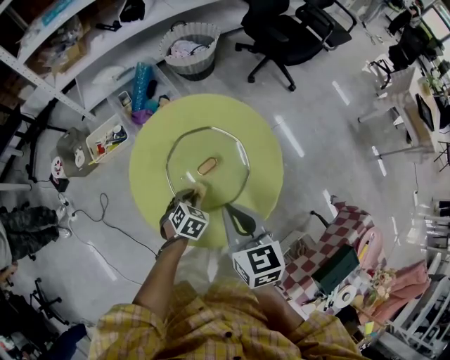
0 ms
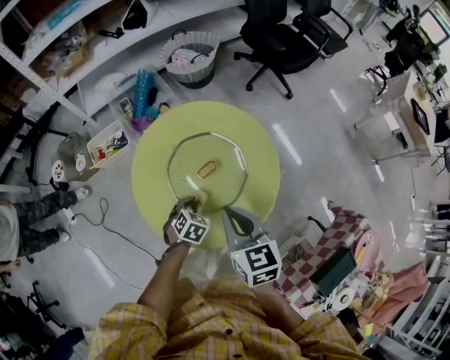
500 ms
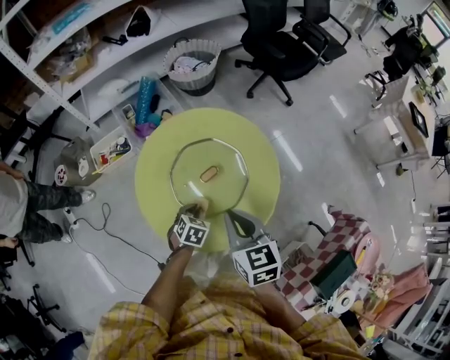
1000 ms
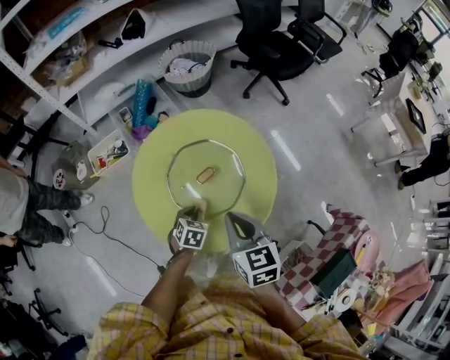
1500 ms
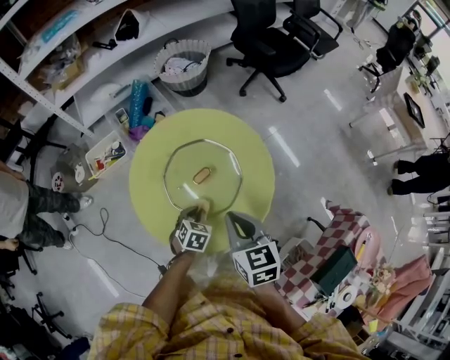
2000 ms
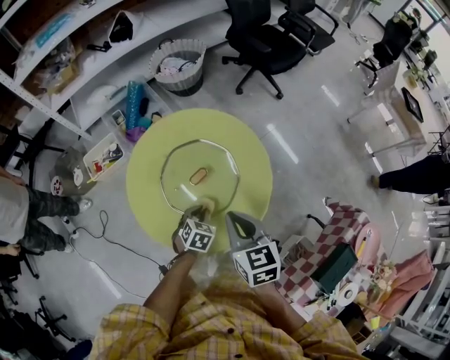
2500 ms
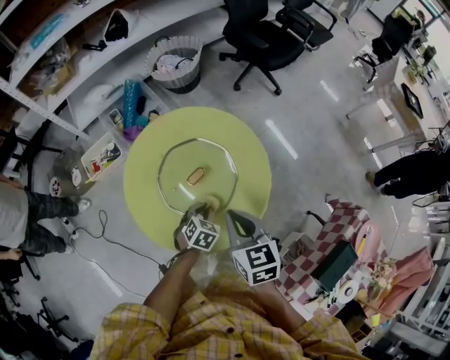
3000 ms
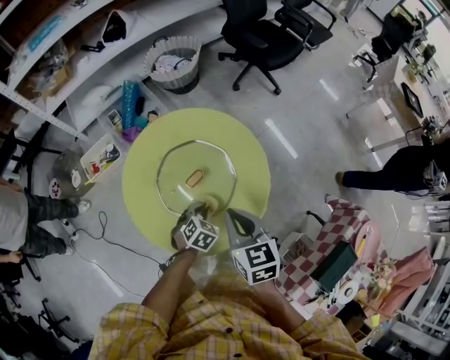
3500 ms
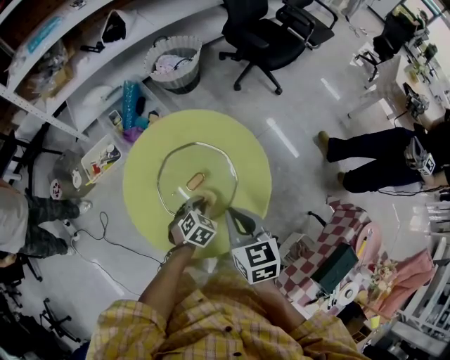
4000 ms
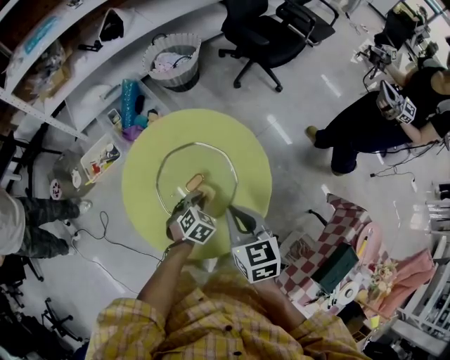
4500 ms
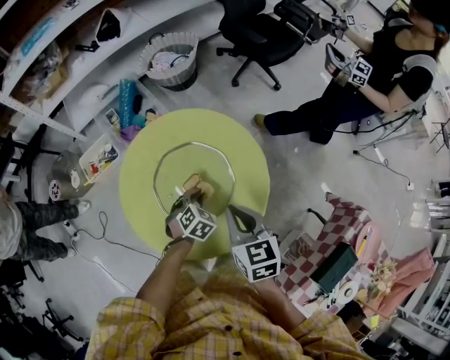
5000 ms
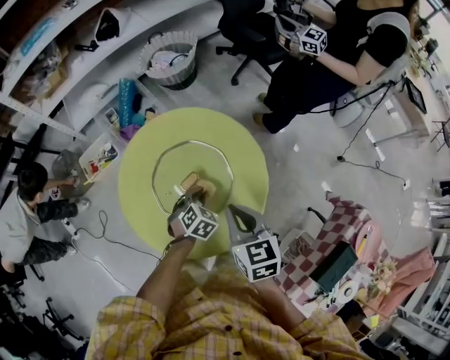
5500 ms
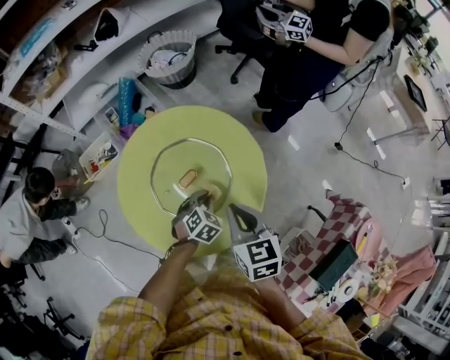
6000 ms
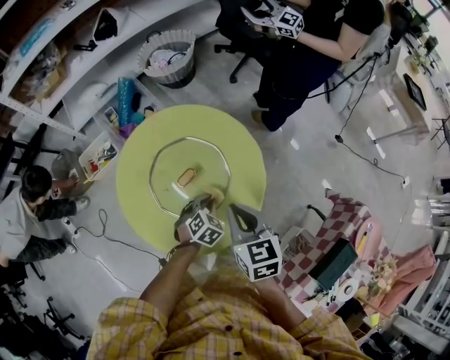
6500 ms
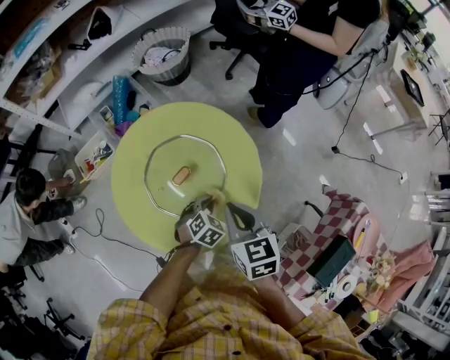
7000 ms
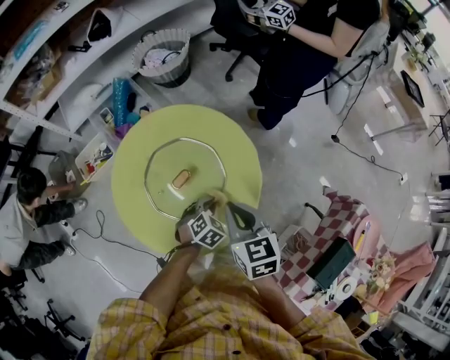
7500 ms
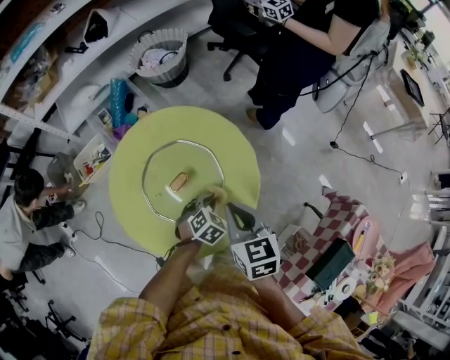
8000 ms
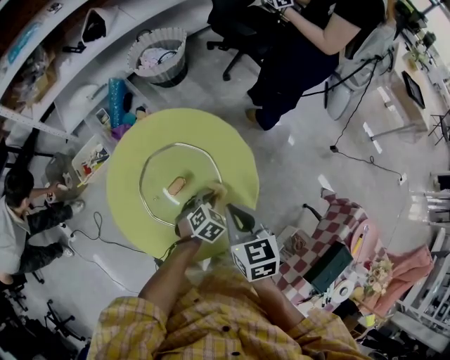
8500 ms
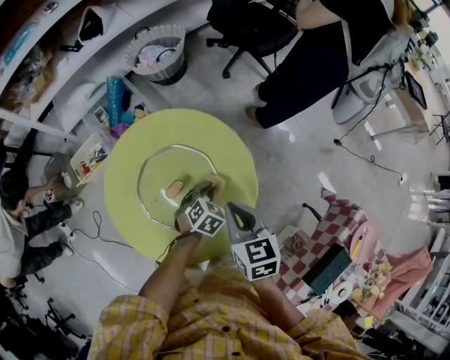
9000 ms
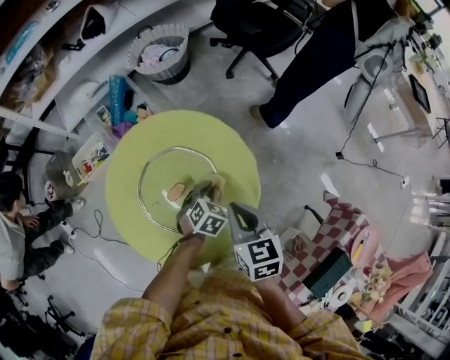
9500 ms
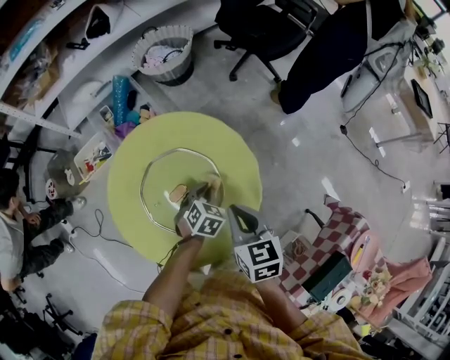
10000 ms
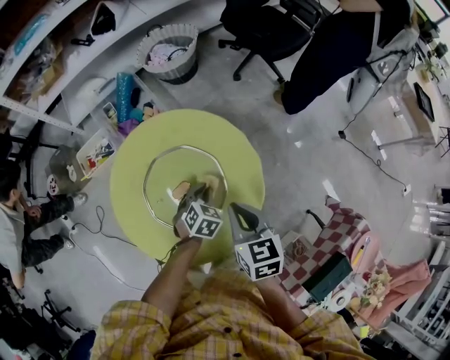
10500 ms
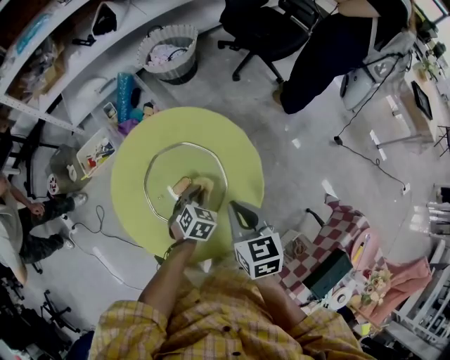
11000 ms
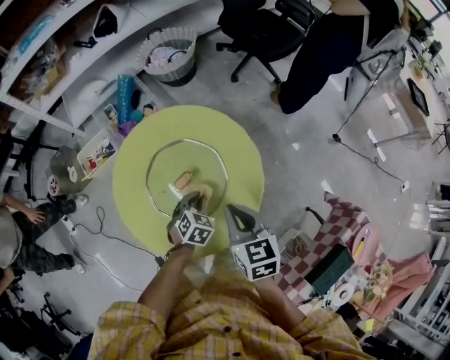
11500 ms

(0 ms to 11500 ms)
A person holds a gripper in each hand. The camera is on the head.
0 ms - 2000 ms: The grippers move only a little.
2000 ms - 4000 ms: The left gripper is displaced forward by about 5 cm.
4000 ms - 6000 ms: There are only small adjustments of the grippers.
6000 ms - 7500 ms: The left gripper ends up about 5 cm from where it was.
7500 ms - 9500 ms: The left gripper is displaced forward by roughly 10 cm; the right gripper shifts some 5 cm forward.
9500 ms - 11500 ms: The left gripper shifts some 10 cm to the left and backward. The right gripper moves roughly 5 cm.

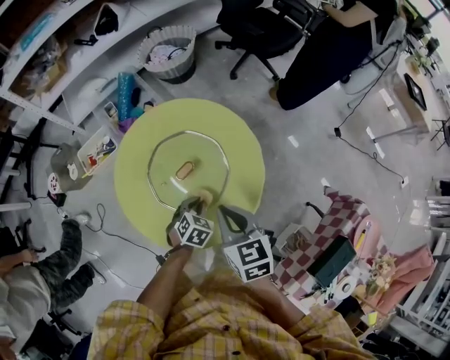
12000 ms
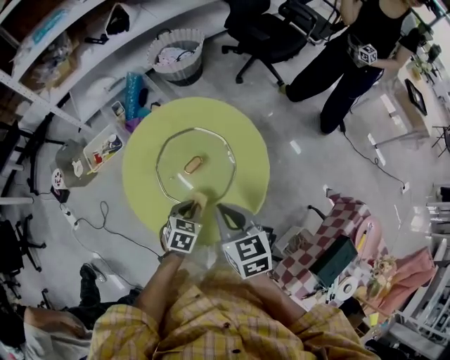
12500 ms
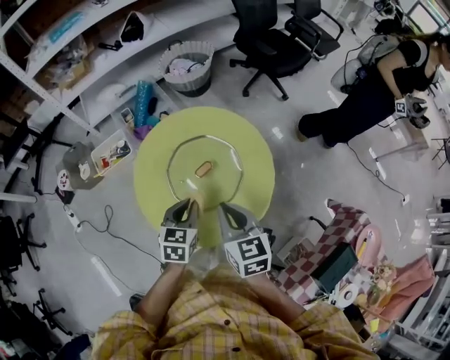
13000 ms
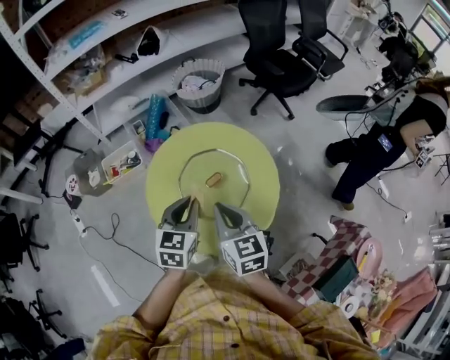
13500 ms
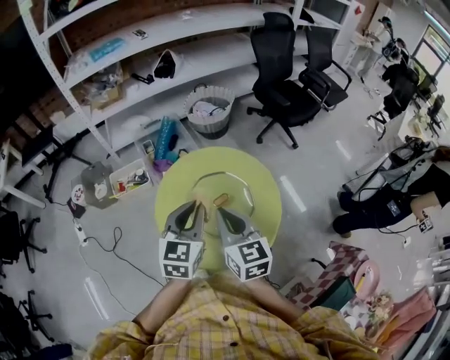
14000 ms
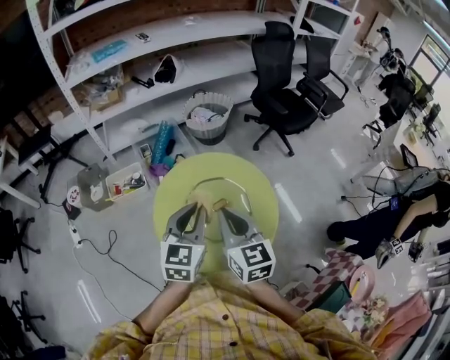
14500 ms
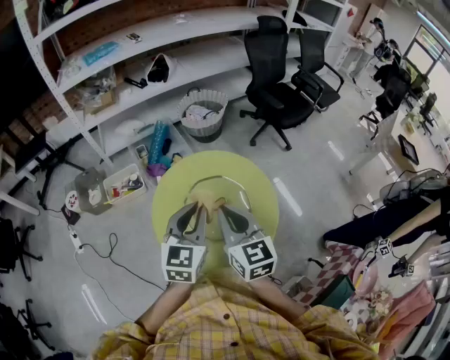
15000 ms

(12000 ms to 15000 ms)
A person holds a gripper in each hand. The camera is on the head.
12000 ms - 13500 ms: The left gripper travels upward and to the left by about 30 cm, and tilts its fingers some 30 degrees upward, while the right gripper shifts some 15 cm to the left and upward.
13500 ms - 15000 ms: The two grippers go roughly 10 cm upward.

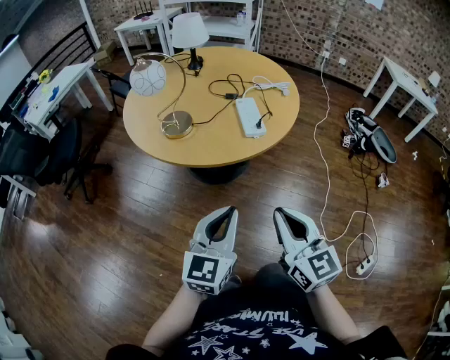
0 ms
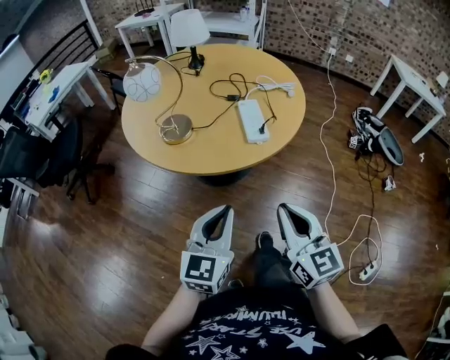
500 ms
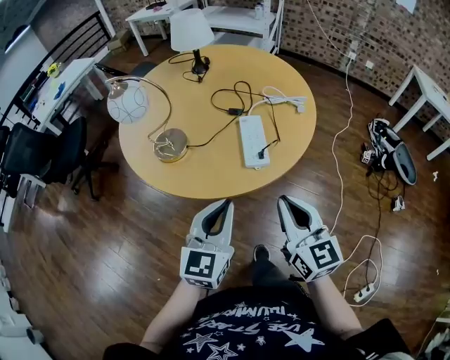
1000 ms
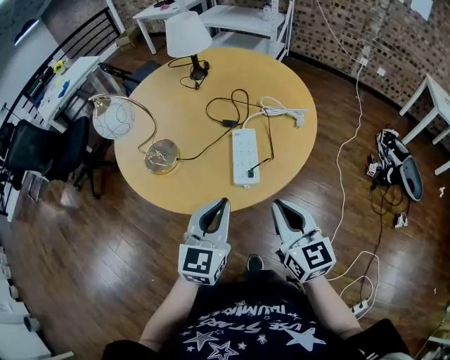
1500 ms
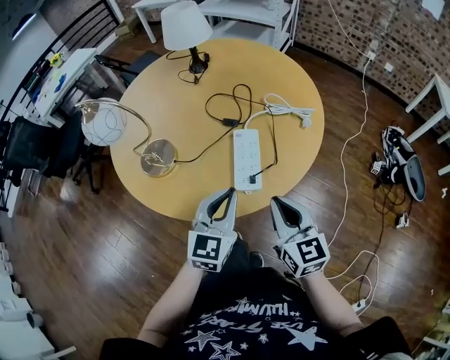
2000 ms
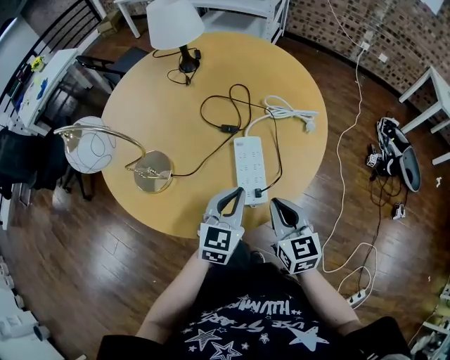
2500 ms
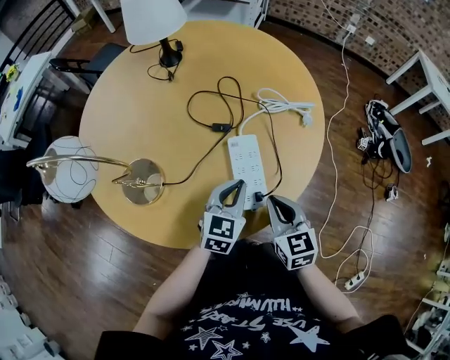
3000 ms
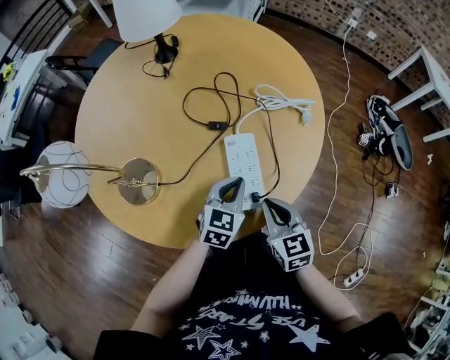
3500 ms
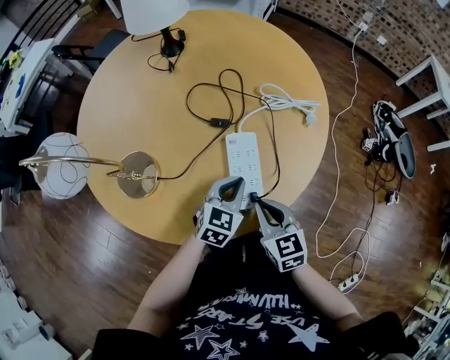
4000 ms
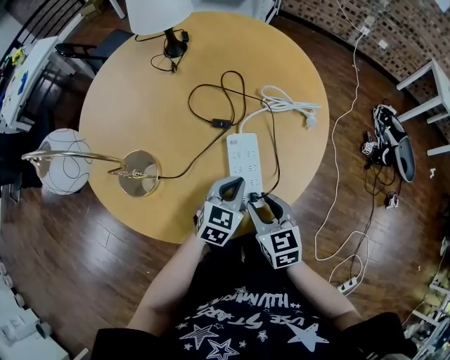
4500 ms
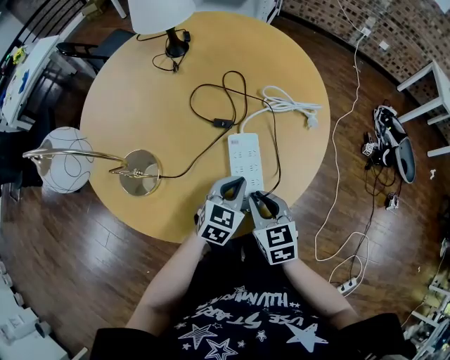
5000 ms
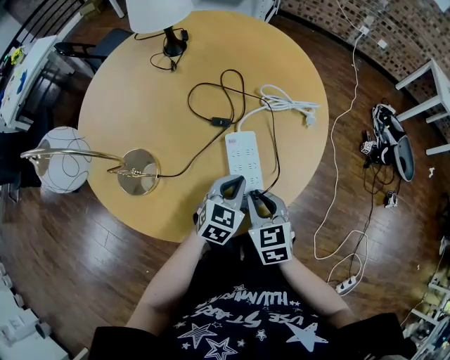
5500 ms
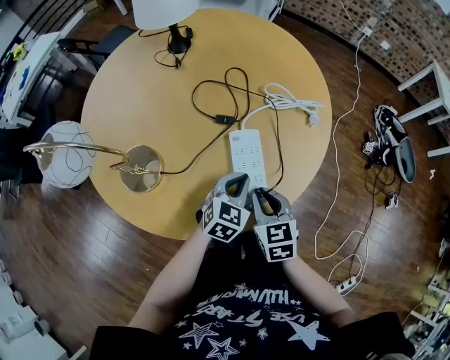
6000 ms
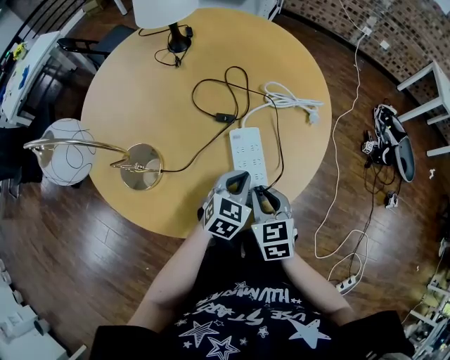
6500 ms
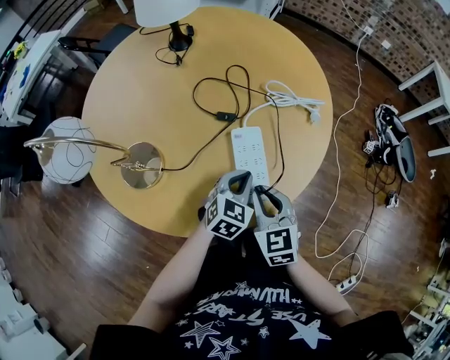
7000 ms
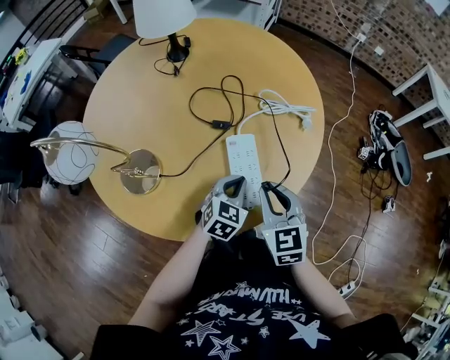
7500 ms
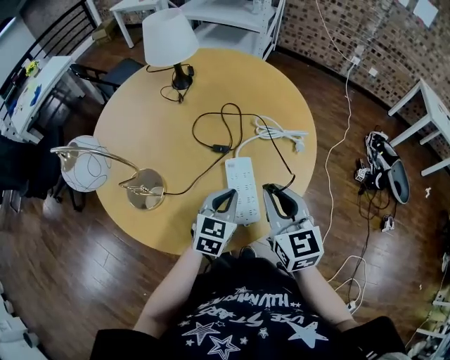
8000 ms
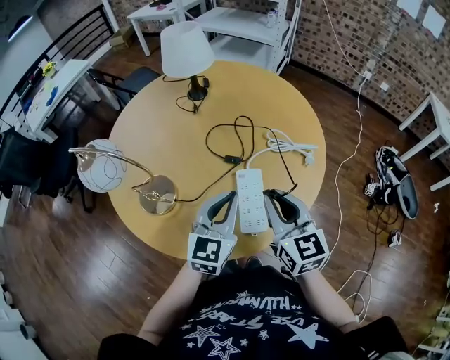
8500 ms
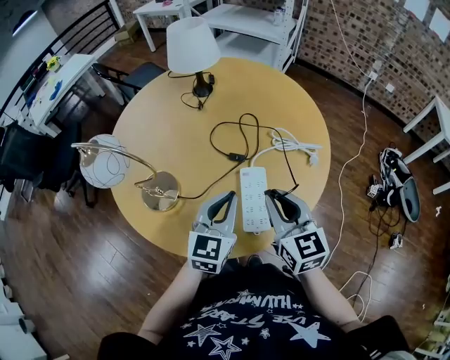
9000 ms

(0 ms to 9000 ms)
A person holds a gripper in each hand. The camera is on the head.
0 ms - 2000 ms: The grippers both shift forward by about 30 cm.
2000 ms - 4500 ms: Both grippers move downward and forward, some 15 cm. The right gripper swivels roughly 20 degrees, and opens its fingers. Meanwhile the left gripper swivels about 30 degrees.
4500 ms - 7000 ms: The right gripper closes its fingers.
7000 ms - 9000 ms: The left gripper moves upward and to the left, roughly 15 cm, and changes its angle by roughly 30 degrees, while the right gripper moves upward, roughly 15 cm, and swivels some 20 degrees.

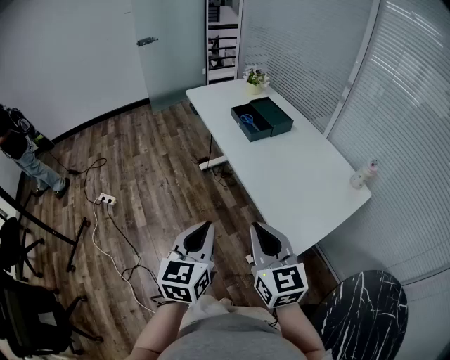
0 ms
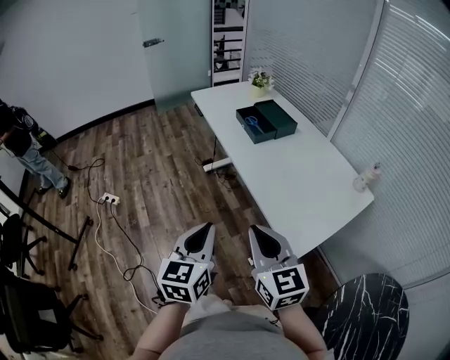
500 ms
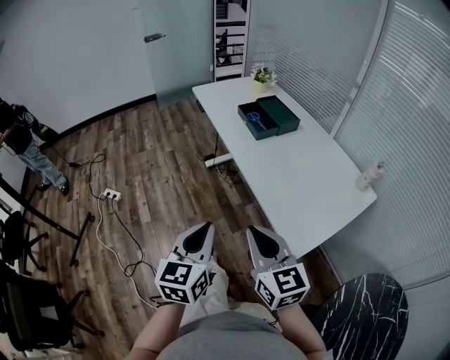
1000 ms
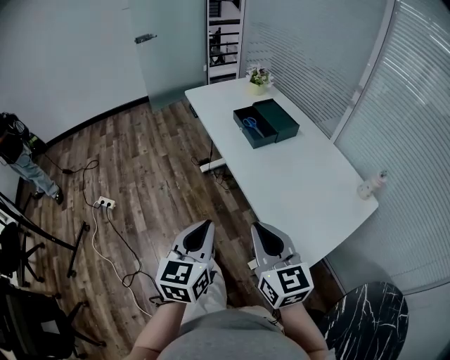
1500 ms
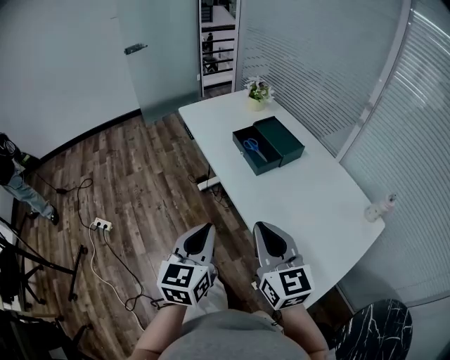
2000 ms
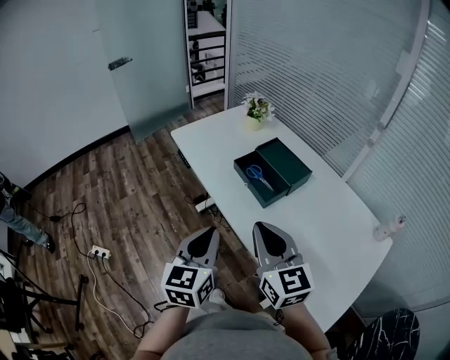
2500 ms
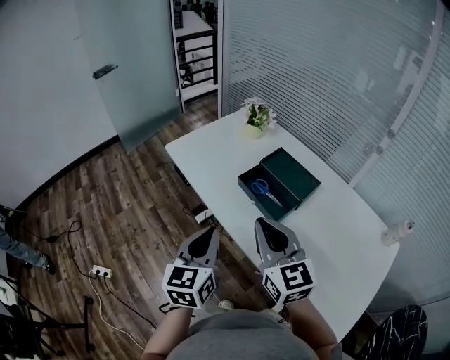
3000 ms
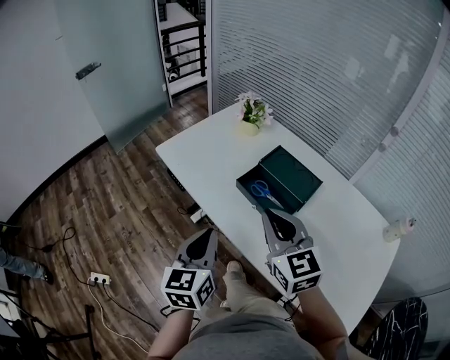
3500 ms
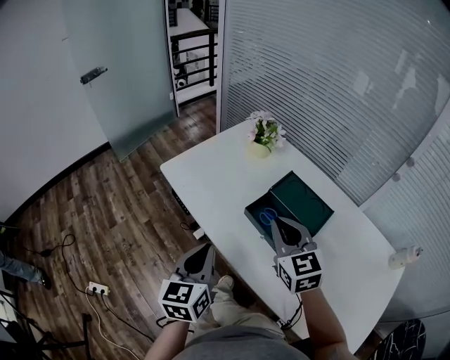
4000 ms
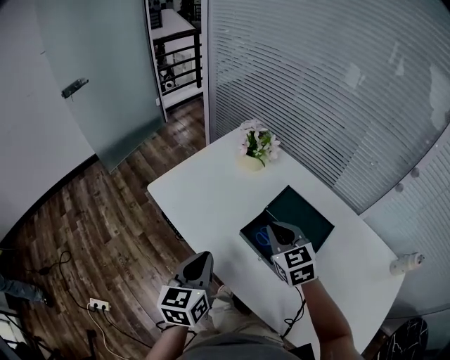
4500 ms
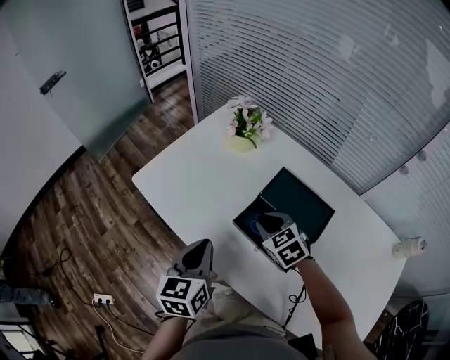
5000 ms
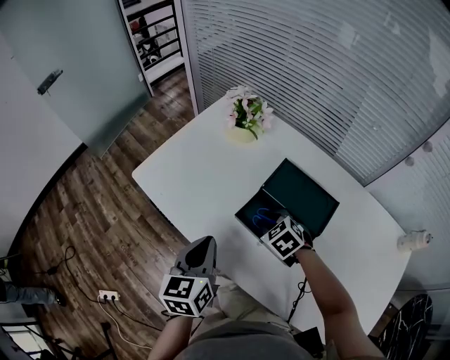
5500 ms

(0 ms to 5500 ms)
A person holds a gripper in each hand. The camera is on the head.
0 ms - 2000 ms: The two grippers go roughly 25 cm forward.
2000 ms - 3500 ms: The two grippers go some 35 cm forward.
3500 ms - 5500 ms: The left gripper moves forward, roughly 20 cm. The right gripper heads downward and forward, covering approximately 35 cm, angles its fingers downward, by some 40 degrees, and opens.
